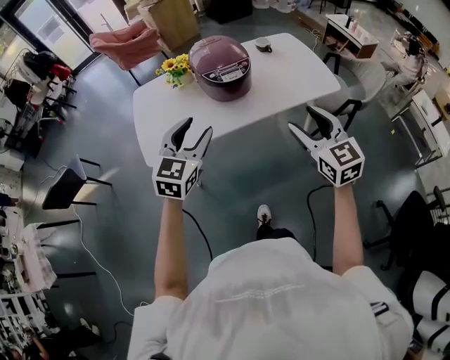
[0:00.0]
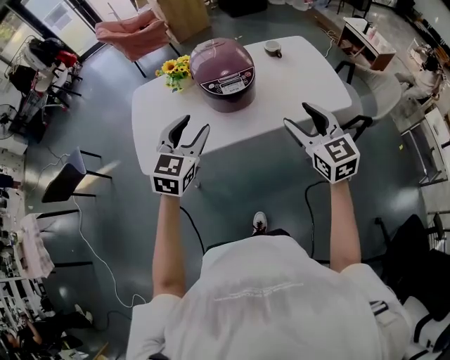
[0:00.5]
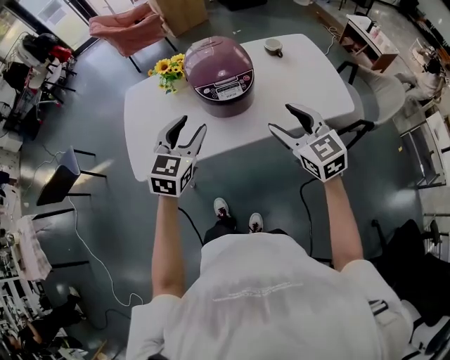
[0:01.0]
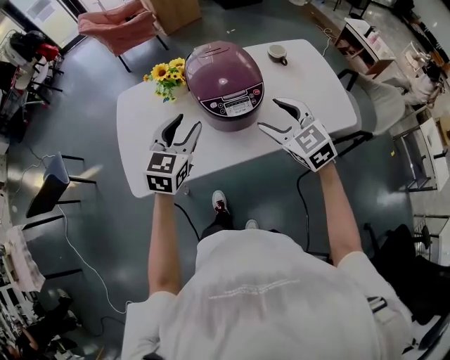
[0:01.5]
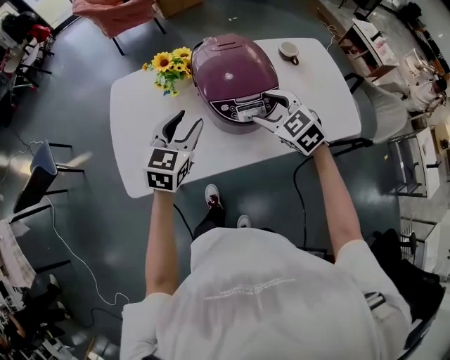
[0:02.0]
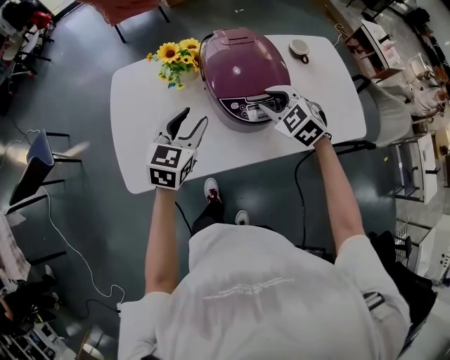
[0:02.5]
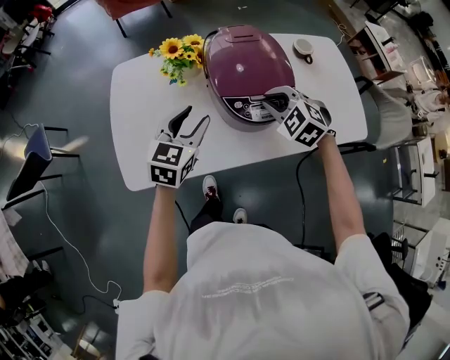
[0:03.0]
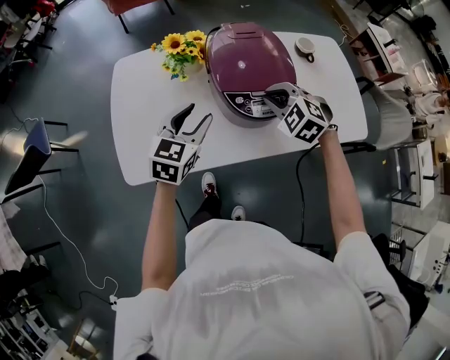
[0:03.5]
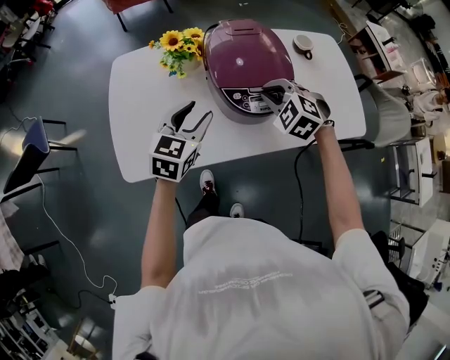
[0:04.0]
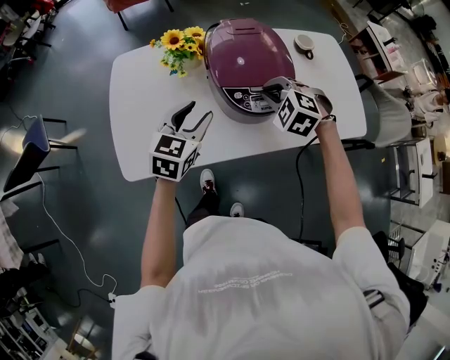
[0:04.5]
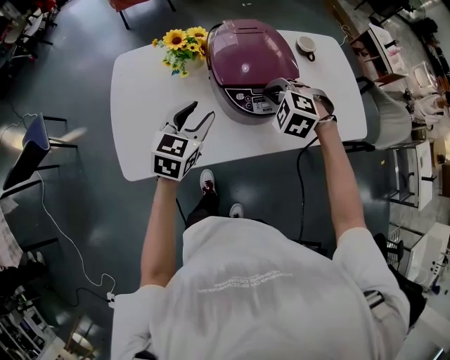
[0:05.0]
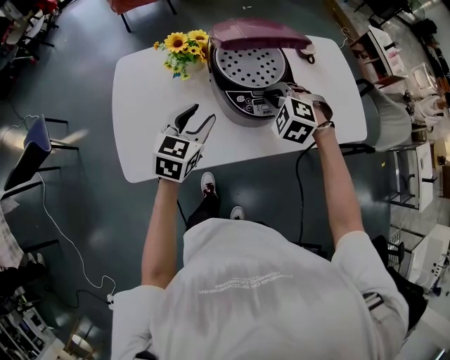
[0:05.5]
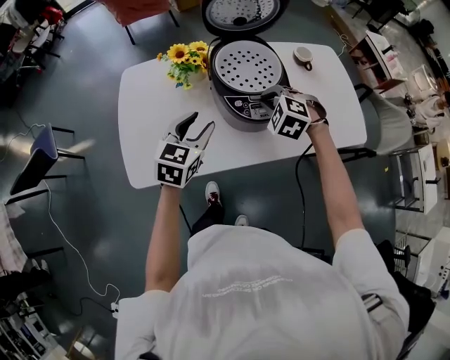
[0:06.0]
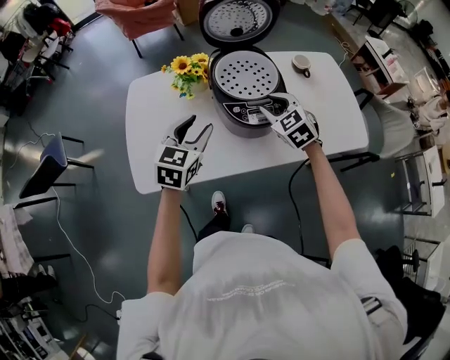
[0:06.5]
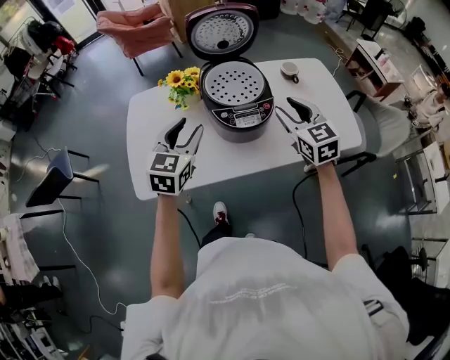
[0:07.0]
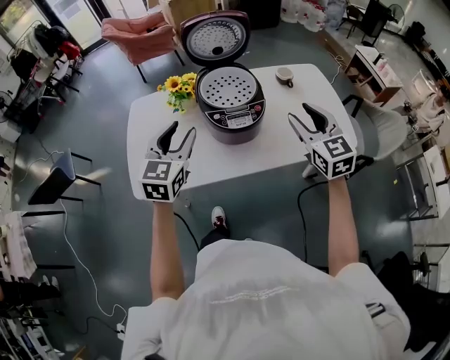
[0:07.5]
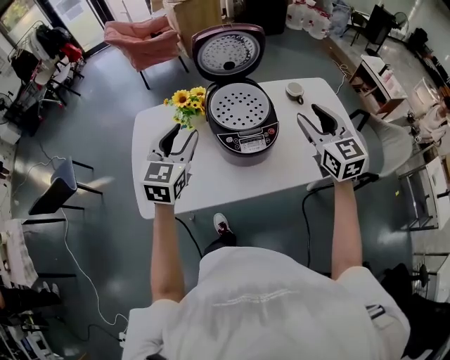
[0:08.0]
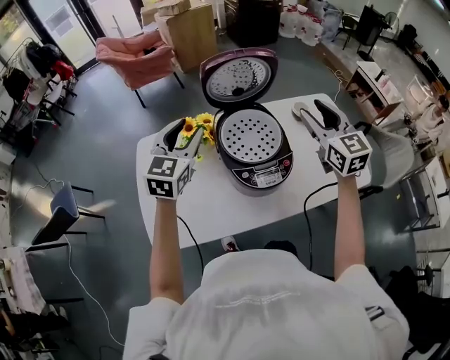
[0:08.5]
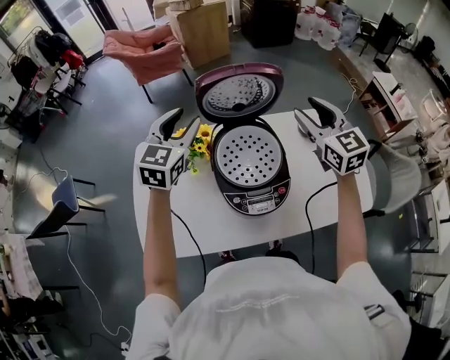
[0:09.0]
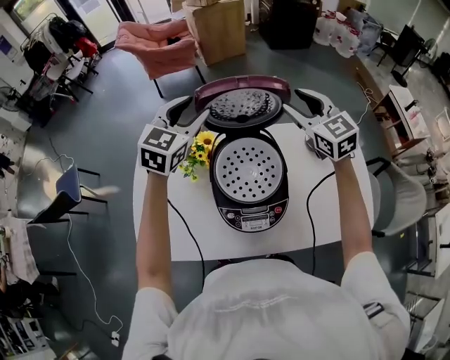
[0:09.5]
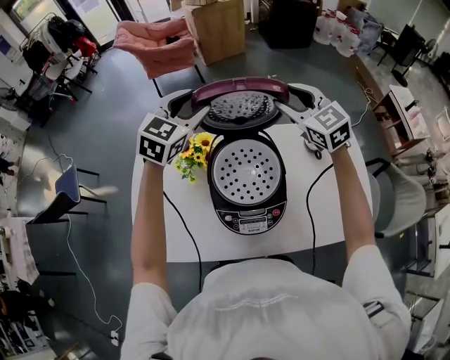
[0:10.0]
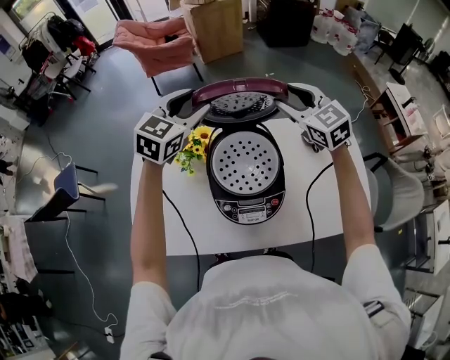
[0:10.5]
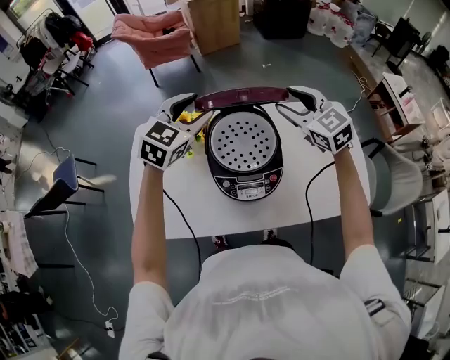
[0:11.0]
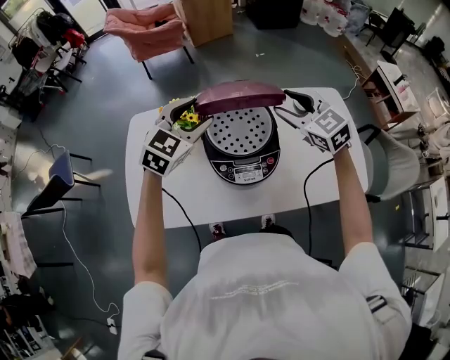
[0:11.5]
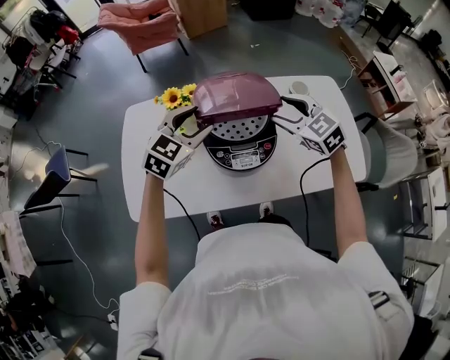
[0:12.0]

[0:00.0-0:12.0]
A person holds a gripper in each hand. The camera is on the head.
0:00.0 to 0:02.0: The grippers both shift forward by some 30 cm. The right gripper rotates roughly 40 degrees.
0:02.0 to 0:04.0: The right gripper ends up about 5 cm from where it was, swivels approximately 30 degrees, and closes.
0:04.0 to 0:06.0: There are only small adjustments of the grippers.
0:06.0 to 0:08.0: The right gripper moves upward and to the right, approximately 25 cm, angles its fingers upward, by about 50 degrees, and opens; the left gripper goes approximately 10 cm upward.
0:08.0 to 0:10.0: Both grippers move forward, approximately 30 cm. The right gripper swivels some 20 degrees.
0:10.0 to 0:12.0: The grippers both shift backward and downward by approximately 20 cm.

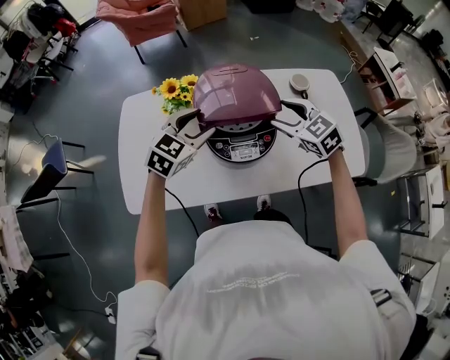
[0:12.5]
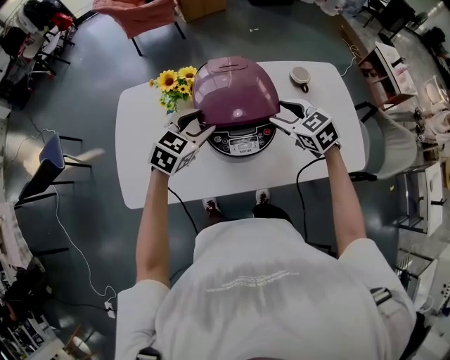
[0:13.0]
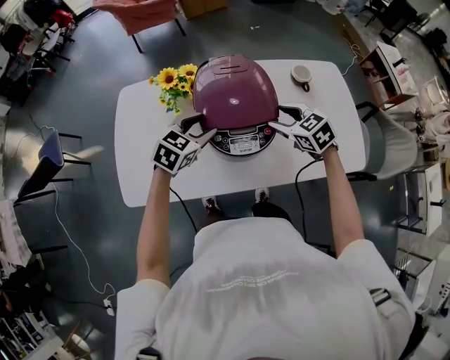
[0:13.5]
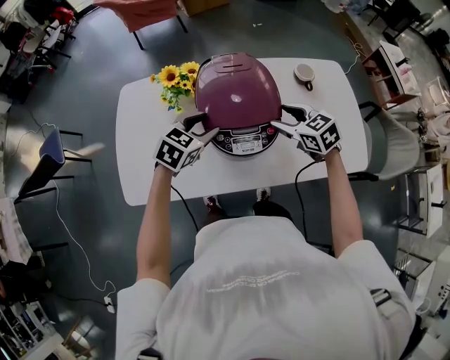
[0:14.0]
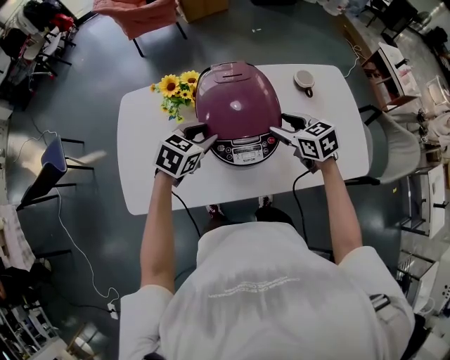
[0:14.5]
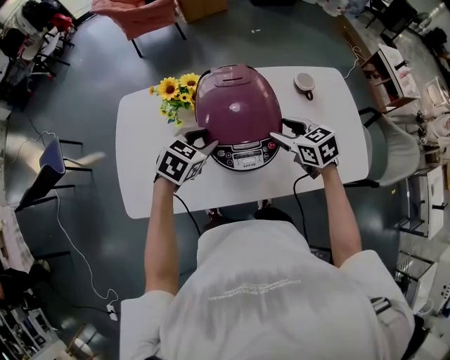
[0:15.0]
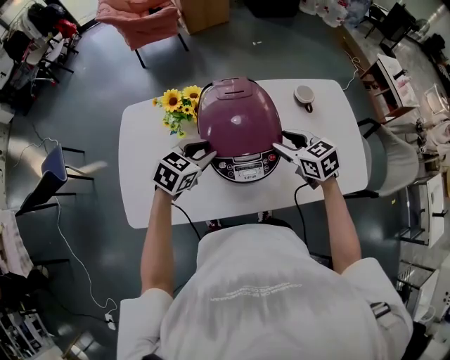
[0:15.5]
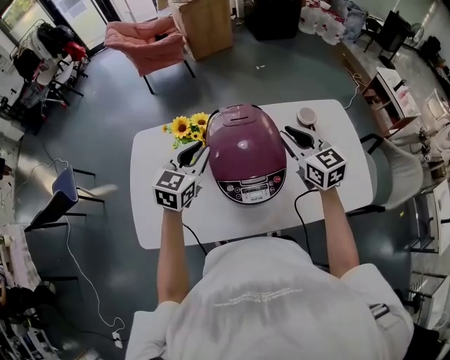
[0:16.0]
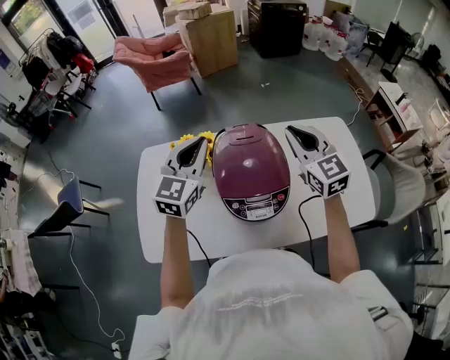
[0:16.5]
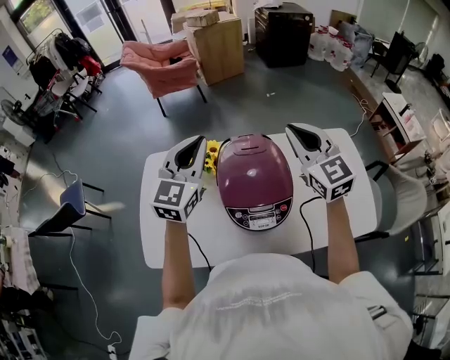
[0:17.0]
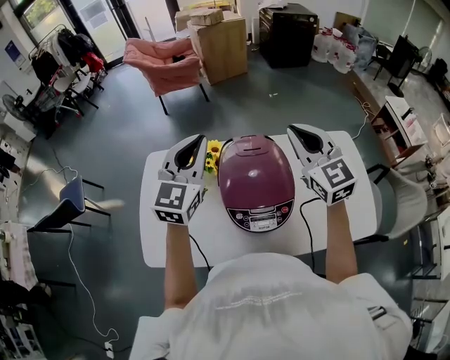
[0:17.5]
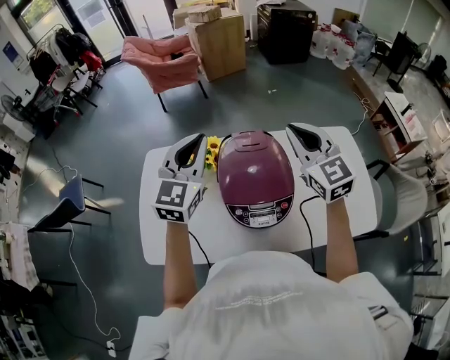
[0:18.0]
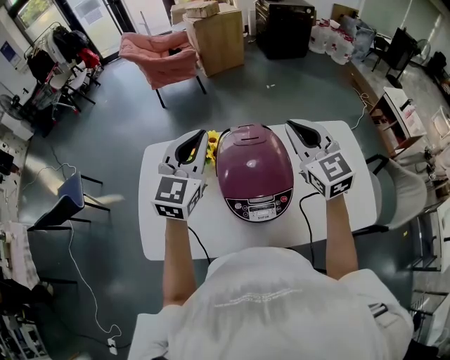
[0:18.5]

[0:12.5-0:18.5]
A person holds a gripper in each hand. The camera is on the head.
0:12.5 to 0:14.5: Both grippers move downward, some 5 cm. The right gripper rotates about 20 degrees; the left gripper rotates approximately 20 degrees.
0:14.5 to 0:16.5: Both grippers travel together upward and forward, roughly 20 cm. The right gripper changes its angle by some 40 degrees, and closes, while the left gripper tilts its fingers some 40 degrees upward, and closes.
0:16.5 to 0:18.5: The grippers move only a little.

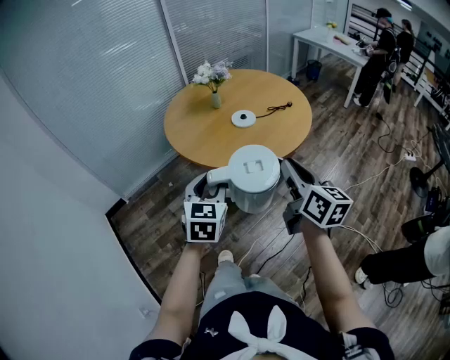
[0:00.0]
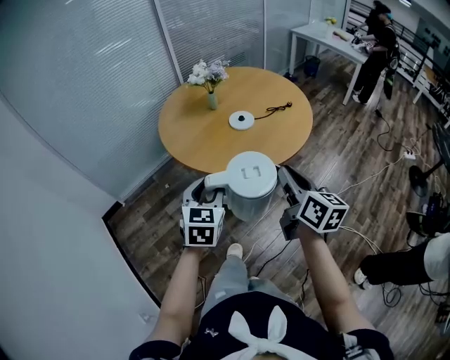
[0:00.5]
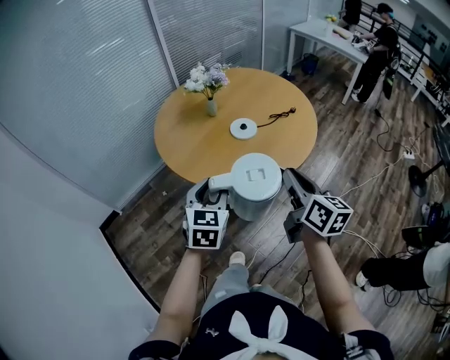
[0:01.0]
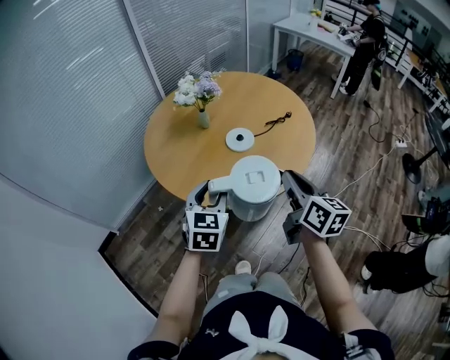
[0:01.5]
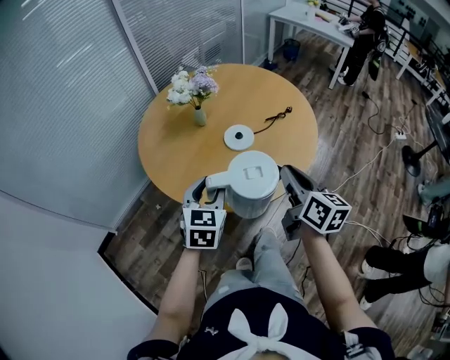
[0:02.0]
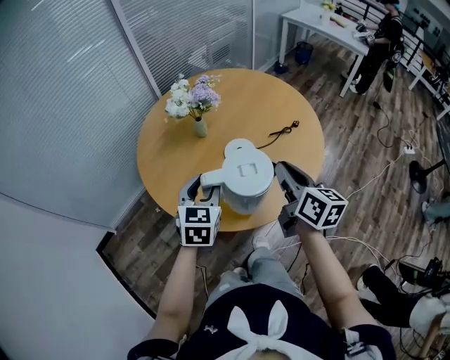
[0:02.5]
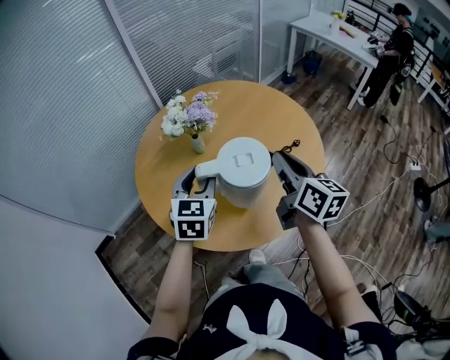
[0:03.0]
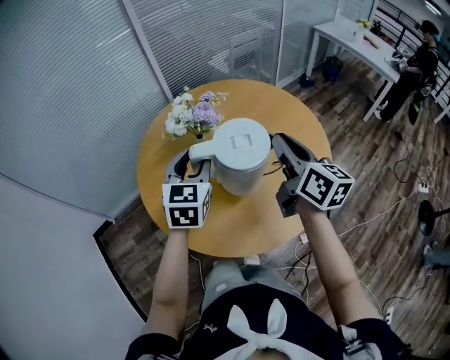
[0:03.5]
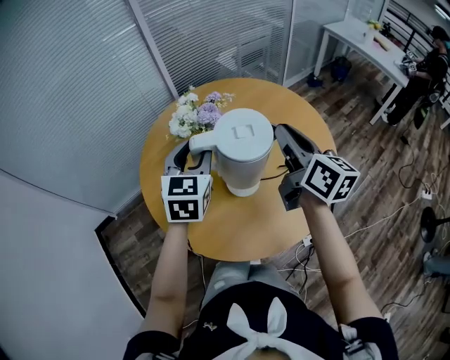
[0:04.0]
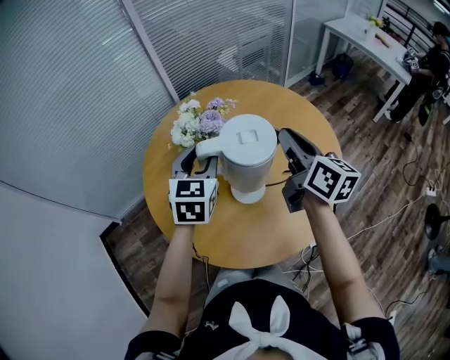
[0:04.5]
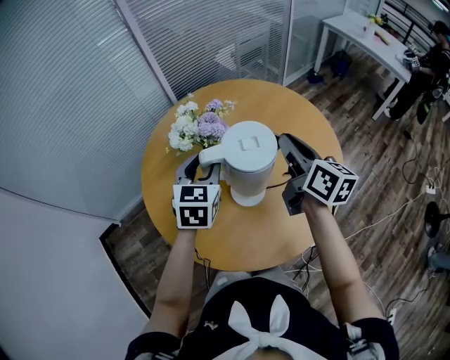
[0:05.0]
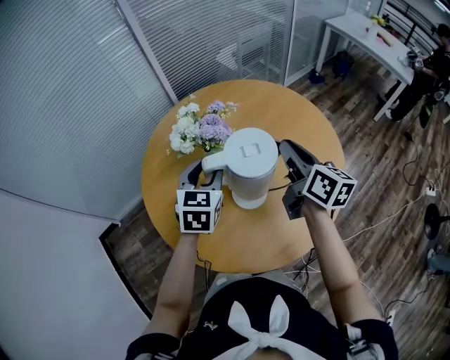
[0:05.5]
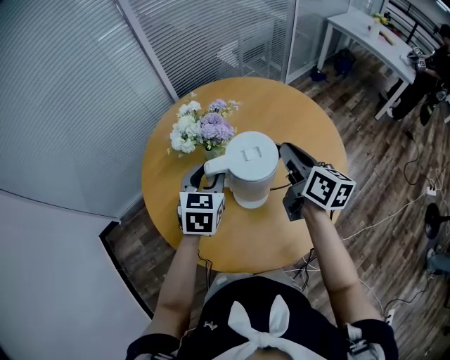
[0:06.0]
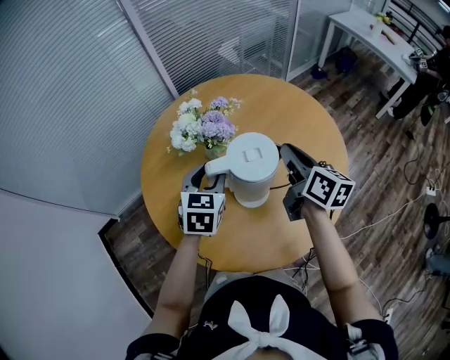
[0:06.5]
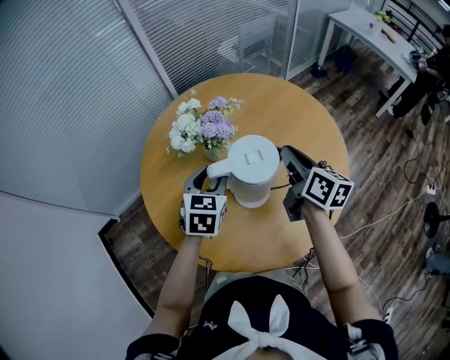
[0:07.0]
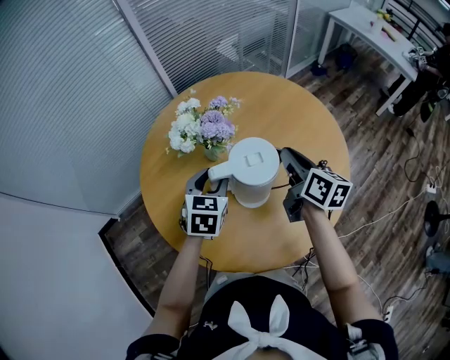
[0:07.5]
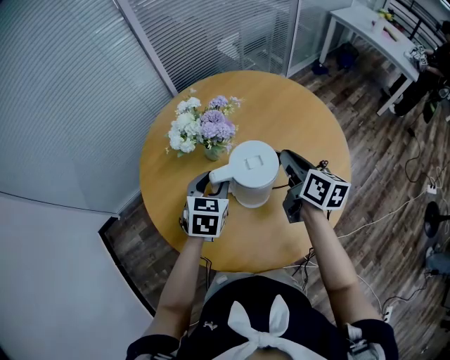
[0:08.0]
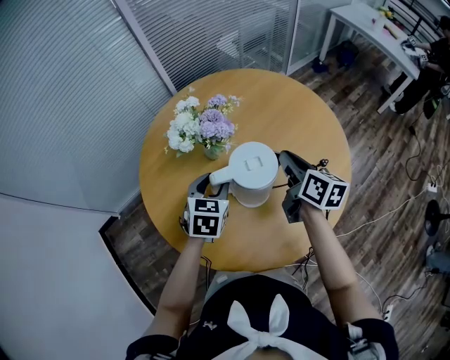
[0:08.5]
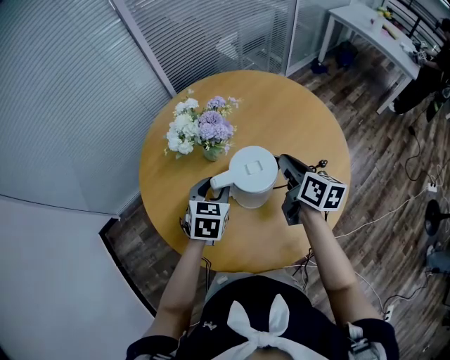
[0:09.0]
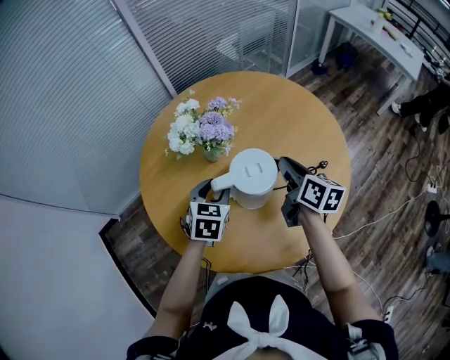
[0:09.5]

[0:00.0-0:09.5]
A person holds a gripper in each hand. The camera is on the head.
0:00.0 to 0:02.0: Both grippers move forward, approximately 25 cm.
0:02.0 to 0:04.0: Both grippers move forward, roughly 30 cm. The right gripper rotates about 20 degrees, while the left gripper rotates some 20 degrees.
0:04.0 to 0:05.5: The left gripper moves downward, some 10 cm. The right gripper is displaced downward and forward by approximately 10 cm.
0:05.5 to 0:07.5: Both grippers move downward, some 5 cm.
0:07.5 to 0:09.5: The grippers make only small movements.
